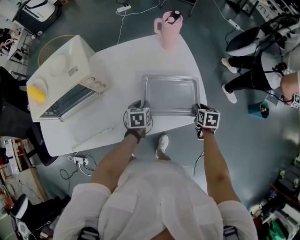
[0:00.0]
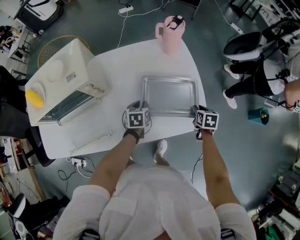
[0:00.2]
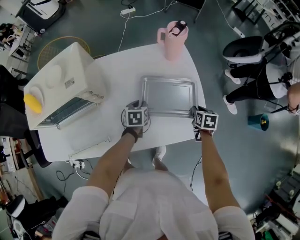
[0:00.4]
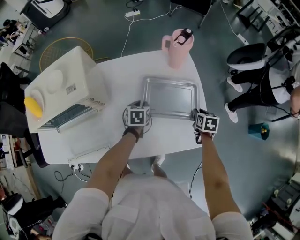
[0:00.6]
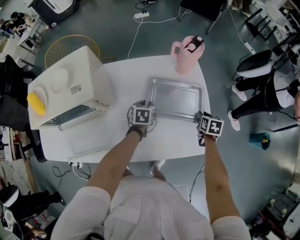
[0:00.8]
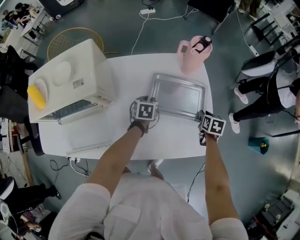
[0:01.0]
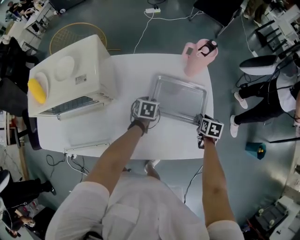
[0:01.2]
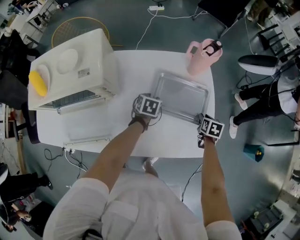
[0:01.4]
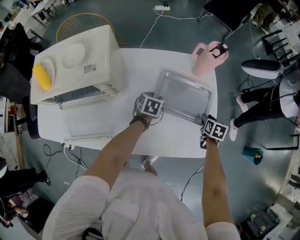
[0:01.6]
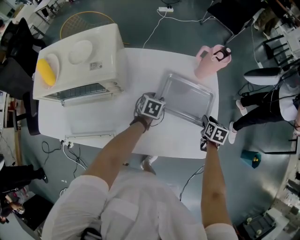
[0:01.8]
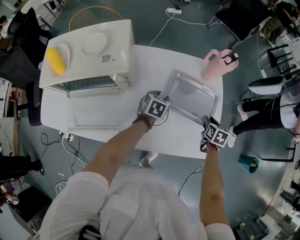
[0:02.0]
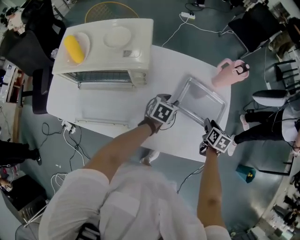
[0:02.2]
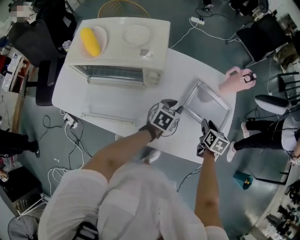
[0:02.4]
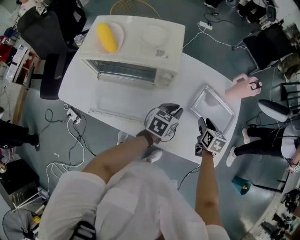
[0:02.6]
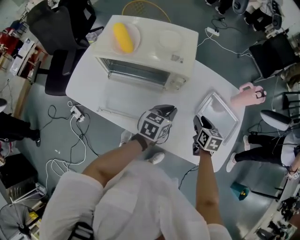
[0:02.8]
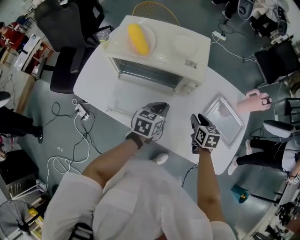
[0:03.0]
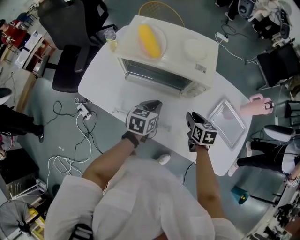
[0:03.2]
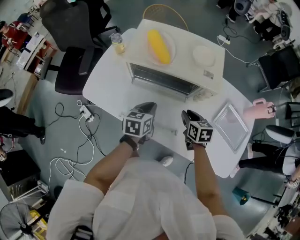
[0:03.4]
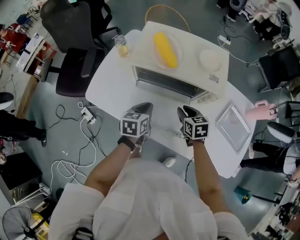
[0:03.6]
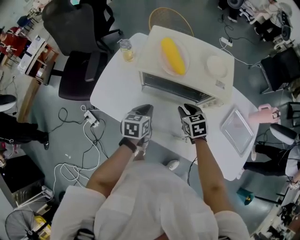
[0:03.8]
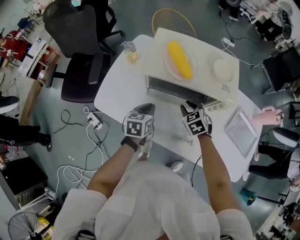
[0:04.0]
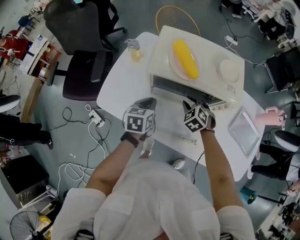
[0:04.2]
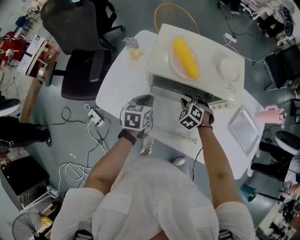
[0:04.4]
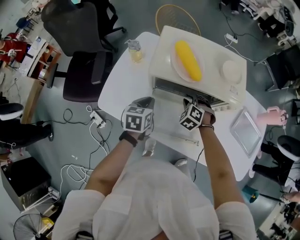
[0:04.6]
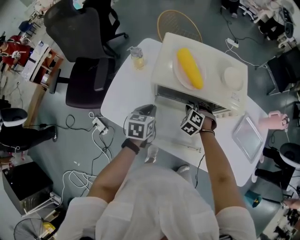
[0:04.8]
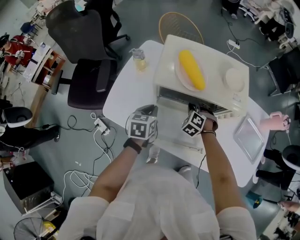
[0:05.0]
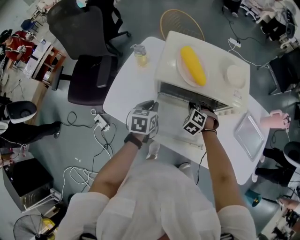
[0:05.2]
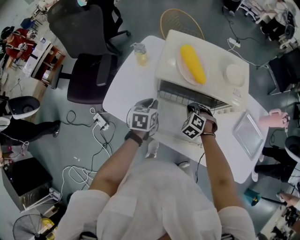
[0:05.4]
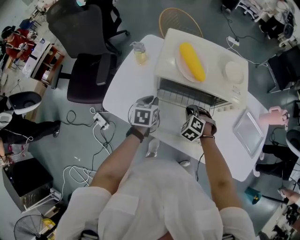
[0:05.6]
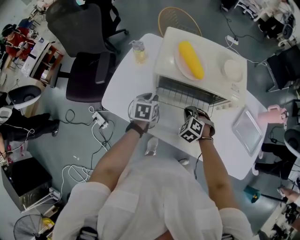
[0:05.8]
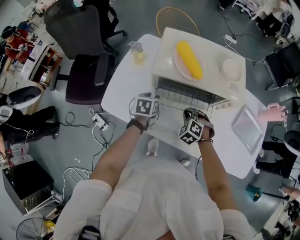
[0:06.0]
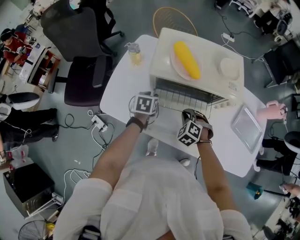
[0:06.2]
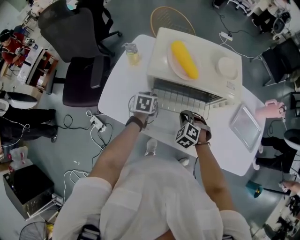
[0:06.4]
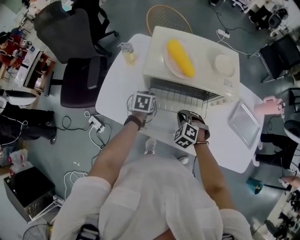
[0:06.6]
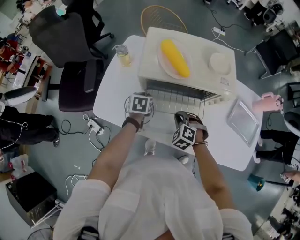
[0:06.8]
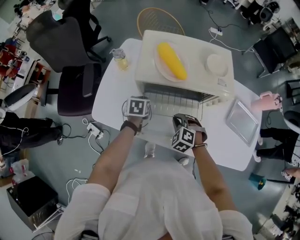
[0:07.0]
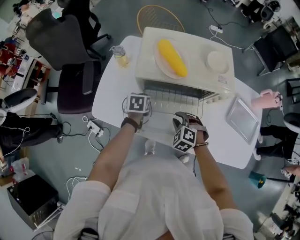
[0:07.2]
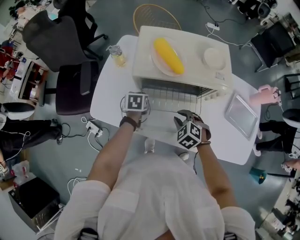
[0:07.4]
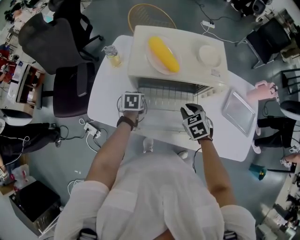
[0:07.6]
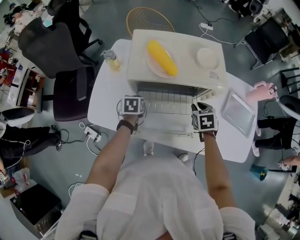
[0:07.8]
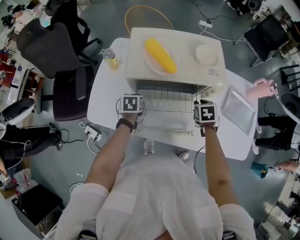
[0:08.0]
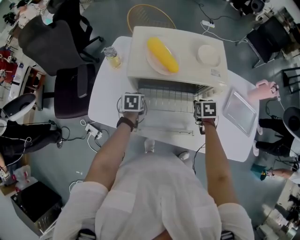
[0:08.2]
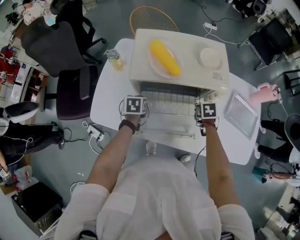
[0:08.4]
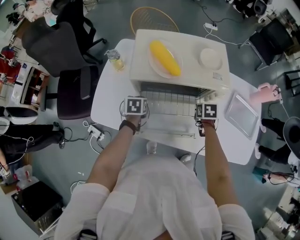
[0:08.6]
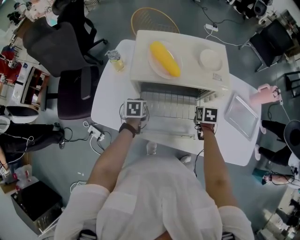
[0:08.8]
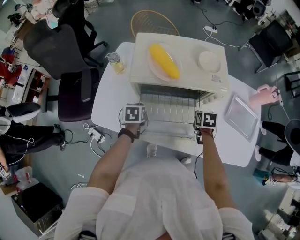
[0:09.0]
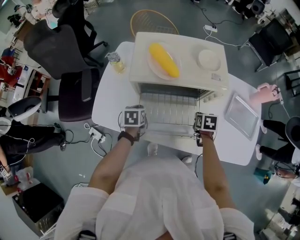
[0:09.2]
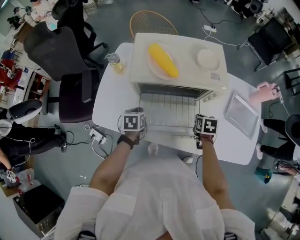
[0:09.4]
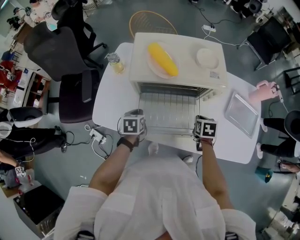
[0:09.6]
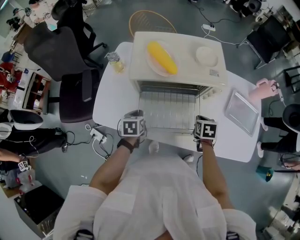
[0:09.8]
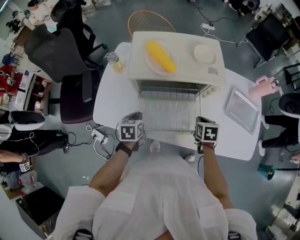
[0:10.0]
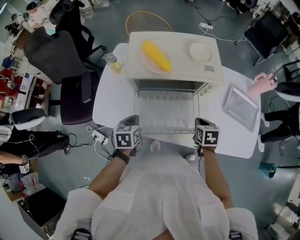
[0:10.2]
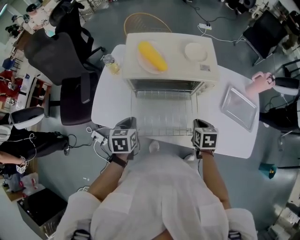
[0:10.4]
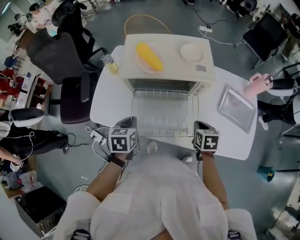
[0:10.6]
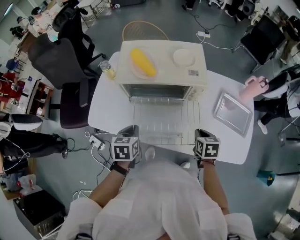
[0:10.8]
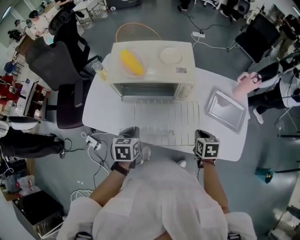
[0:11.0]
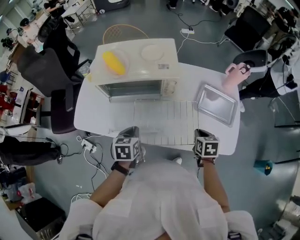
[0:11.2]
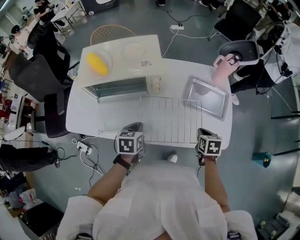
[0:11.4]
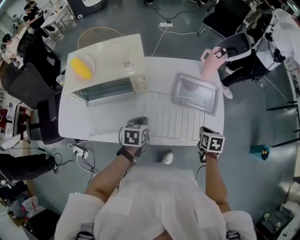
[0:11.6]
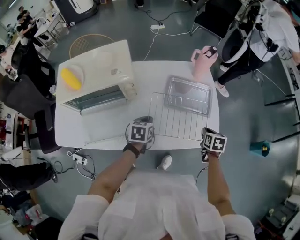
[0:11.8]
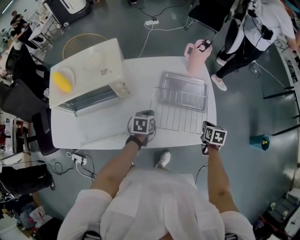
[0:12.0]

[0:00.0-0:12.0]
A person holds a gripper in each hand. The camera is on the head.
0:00.0 to 0:01.6: Both grippers travel together forward, approximately 15 cm.
0:01.6 to 0:03.0: The left gripper ends up approximately 35 cm from where it was, rotates roughly 30 degrees, and closes up. The right gripper moves some 40 cm, and changes its angle by roughly 40 degrees.
0:03.0 to 0:04.4: The left gripper heads to the left, covering roughly 30 cm. Meanwhile the right gripper shifts some 30 cm to the left and forward, and twists approximately 60 degrees counterclockwise, seen from behind.
0:04.4 to 0:06.0: The right gripper goes some 5 cm backward. Meanwhile the left gripper is displaced downward by approximately 5 cm, and opens up.
0:06.0 to 0:07.6: The left gripper closes its fingers, while the right gripper travels to the right by roughly 5 cm, and turns by approximately 40 degrees.
0:07.6 to 0:09.0: The right gripper heads to the right and downward, covering some 10 cm, and swivels approximately 40 degrees.
0:09.0 to 0:10.4: The grippers both shift backward and upward by some 15 cm.
0:10.4 to 0:12.0: Both grippers are carried some 50 cm. The left gripper swivels about 30 degrees. The right gripper changes its angle by about 30 degrees.

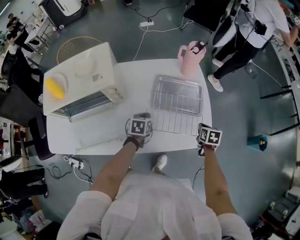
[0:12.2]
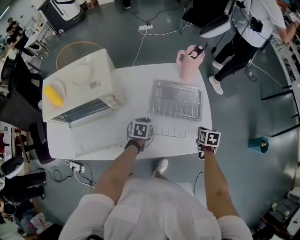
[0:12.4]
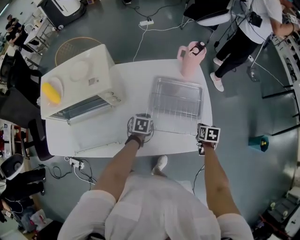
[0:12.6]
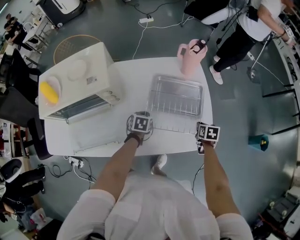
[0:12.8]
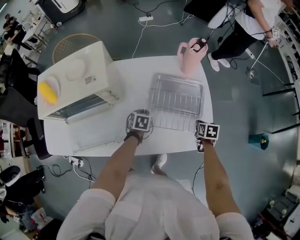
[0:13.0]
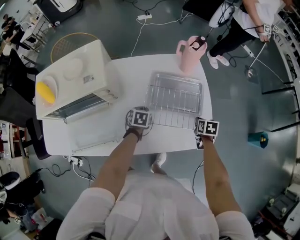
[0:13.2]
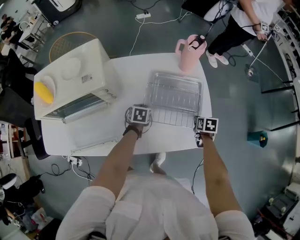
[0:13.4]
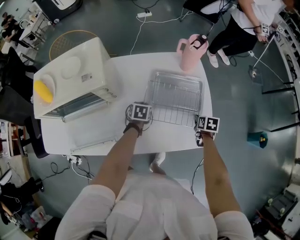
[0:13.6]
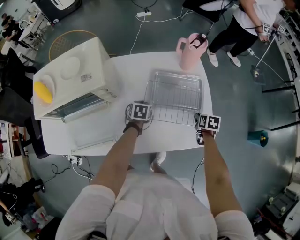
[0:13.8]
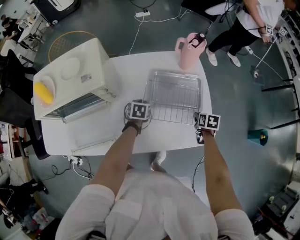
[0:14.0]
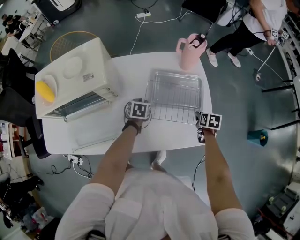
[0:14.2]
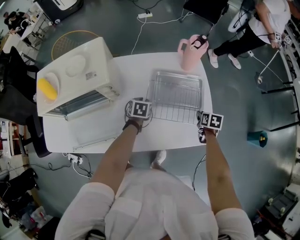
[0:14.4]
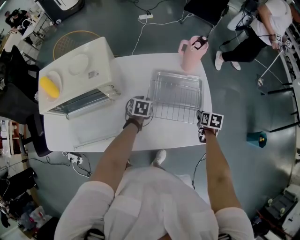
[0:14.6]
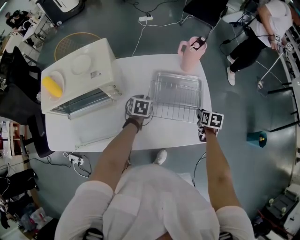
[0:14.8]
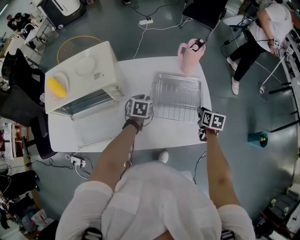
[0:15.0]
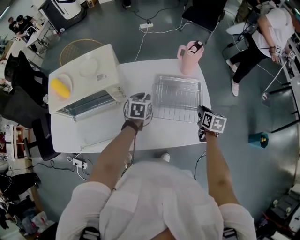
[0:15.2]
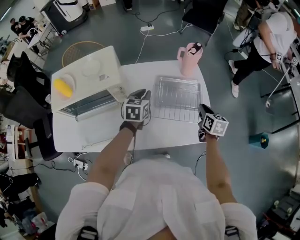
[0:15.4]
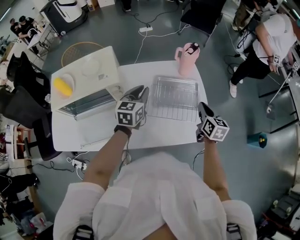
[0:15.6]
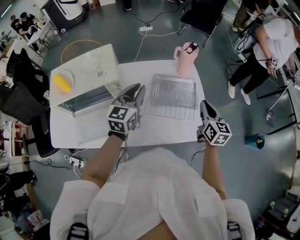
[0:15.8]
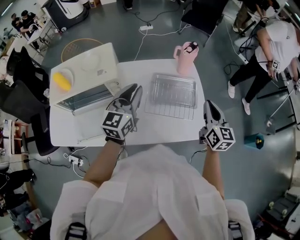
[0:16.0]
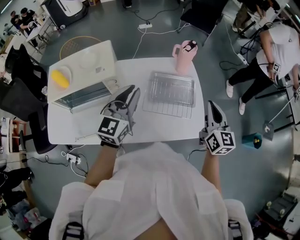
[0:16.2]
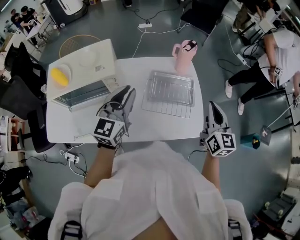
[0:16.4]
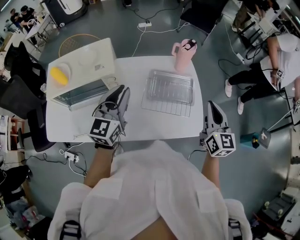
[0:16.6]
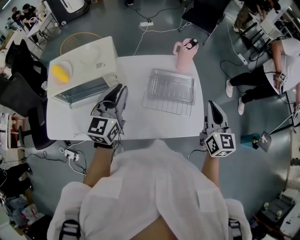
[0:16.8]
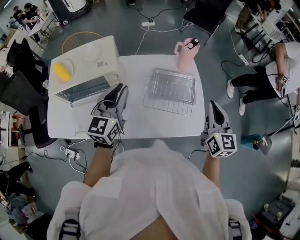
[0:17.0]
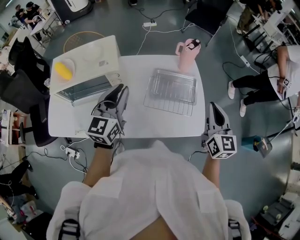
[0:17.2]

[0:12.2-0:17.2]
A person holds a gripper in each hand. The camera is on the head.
0:12.2 to 0:13.8: The two grippers go about 5 cm forward.
0:13.8 to 0:15.6: The grippers both shift upward by about 25 cm. The right gripper points its fingers about 40 degrees further upward, while the left gripper tips its fingers upward by about 40 degrees.
0:15.6 to 0:17.2: Both grippers move upward and backward, some 15 cm. The right gripper rotates about 30 degrees; the left gripper rotates approximately 20 degrees.

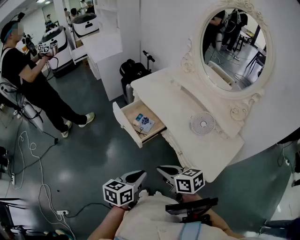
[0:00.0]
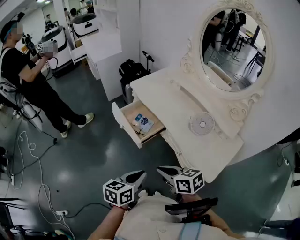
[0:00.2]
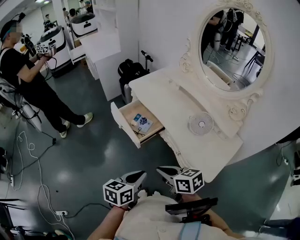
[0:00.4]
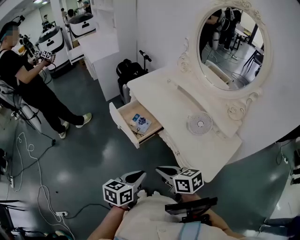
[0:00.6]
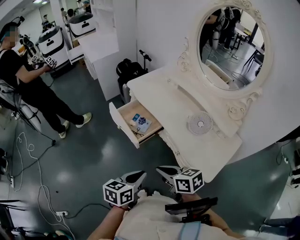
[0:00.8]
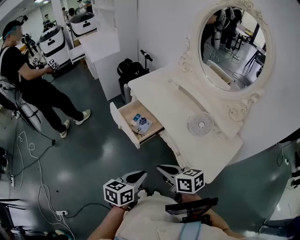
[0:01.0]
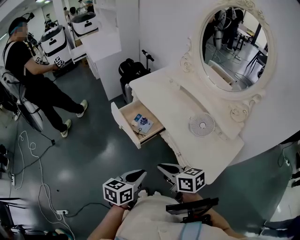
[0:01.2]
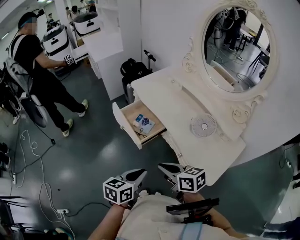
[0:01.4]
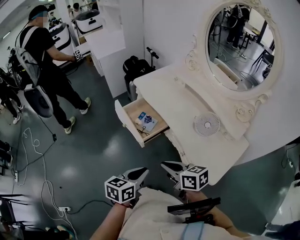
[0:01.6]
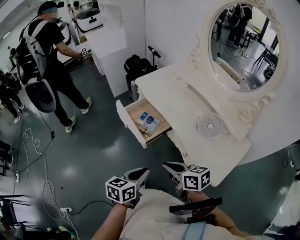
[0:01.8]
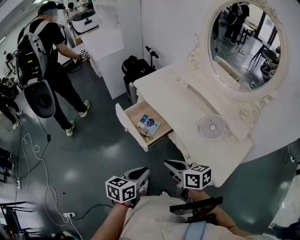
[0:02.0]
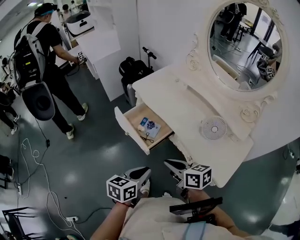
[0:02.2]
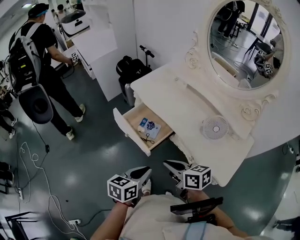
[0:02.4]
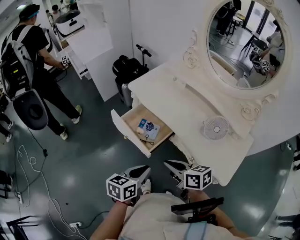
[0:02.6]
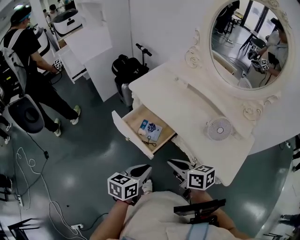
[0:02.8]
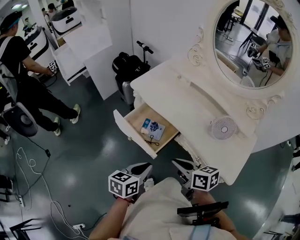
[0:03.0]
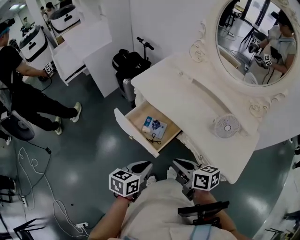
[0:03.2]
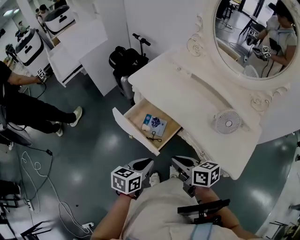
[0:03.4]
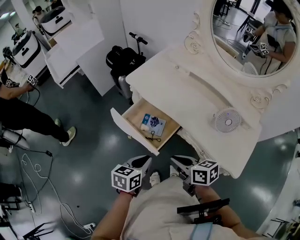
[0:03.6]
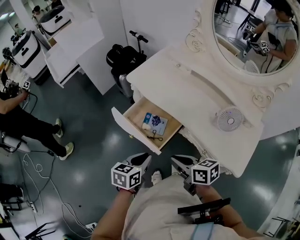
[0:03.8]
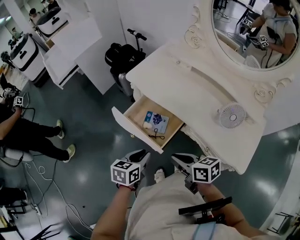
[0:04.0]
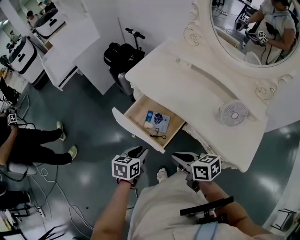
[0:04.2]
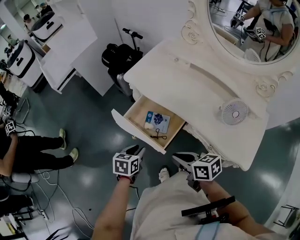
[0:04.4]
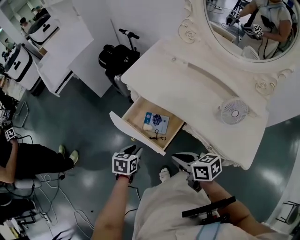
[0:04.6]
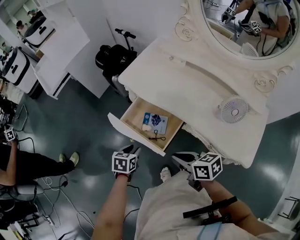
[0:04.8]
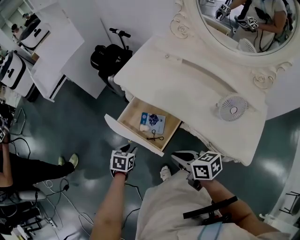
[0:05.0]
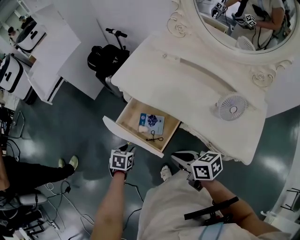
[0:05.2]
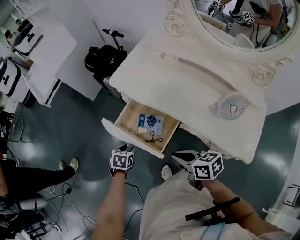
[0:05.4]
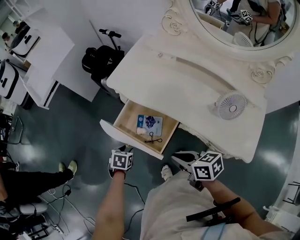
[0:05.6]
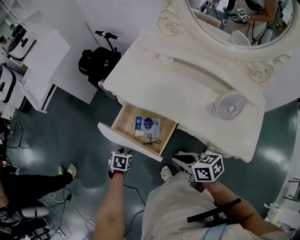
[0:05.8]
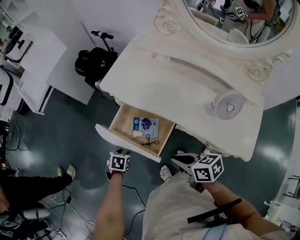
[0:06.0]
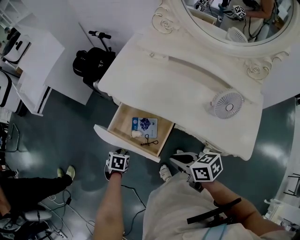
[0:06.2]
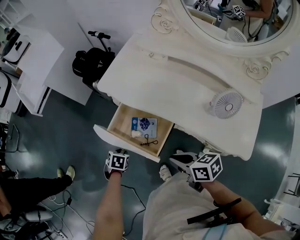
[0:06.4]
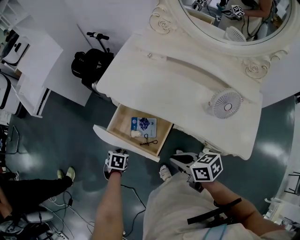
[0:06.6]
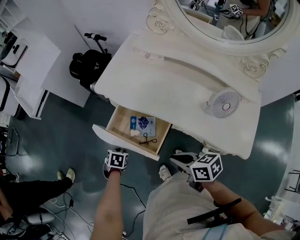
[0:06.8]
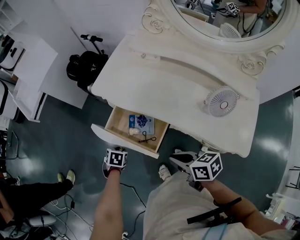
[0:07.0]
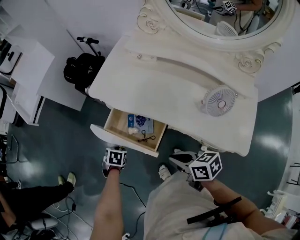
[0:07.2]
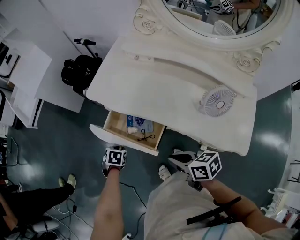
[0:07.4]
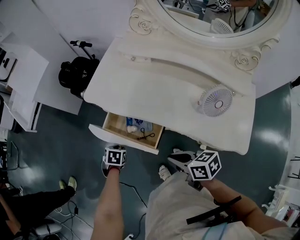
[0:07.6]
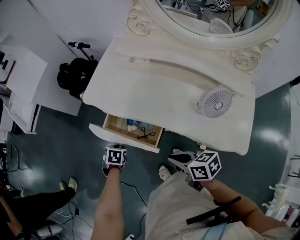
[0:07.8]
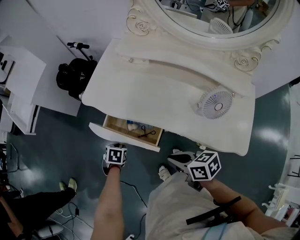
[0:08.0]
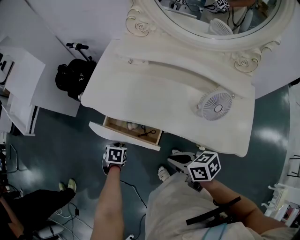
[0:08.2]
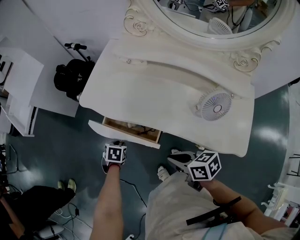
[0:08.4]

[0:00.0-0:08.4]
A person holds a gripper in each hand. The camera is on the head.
0:00.0 to 0:01.4: The grippers make only small movements.
0:01.4 to 0:02.8: Both grippers travel together forward and to the left, about 15 cm.
0:02.8 to 0:04.2: The right gripper travels downward by some 5 cm. Meanwhile the left gripper moves forward, downward and to the left, approximately 15 cm.
0:04.2 to 0:05.6: The left gripper goes approximately 15 cm downward, forward and to the left, and swivels about 30 degrees.
0:05.6 to 0:07.0: The grippers stay close to where they were, moving slightly.
0:07.0 to 0:08.4: The left gripper shifts by some 10 cm.
